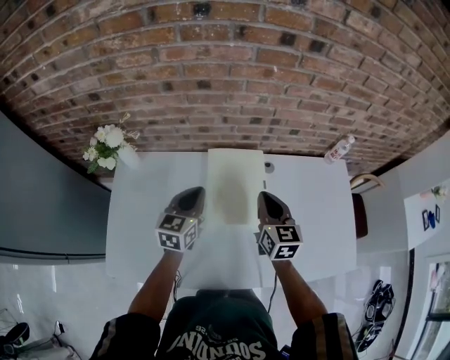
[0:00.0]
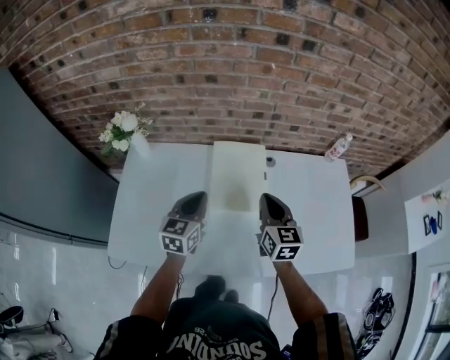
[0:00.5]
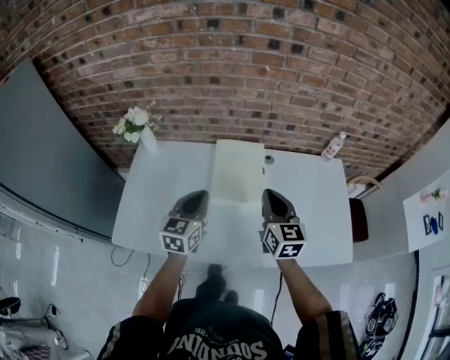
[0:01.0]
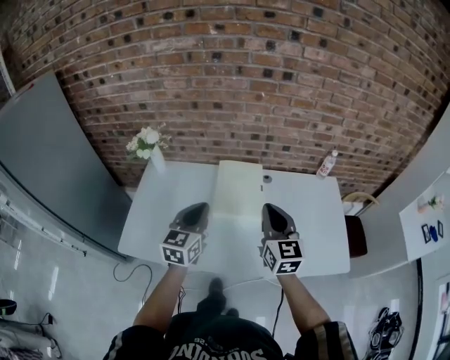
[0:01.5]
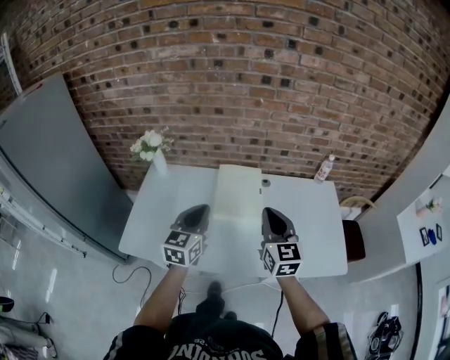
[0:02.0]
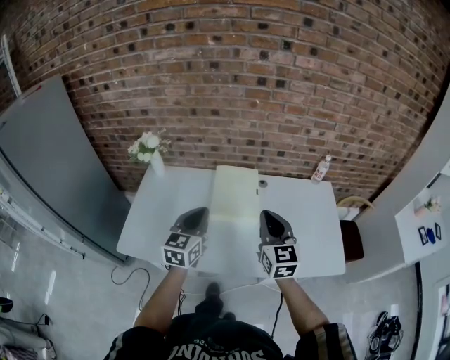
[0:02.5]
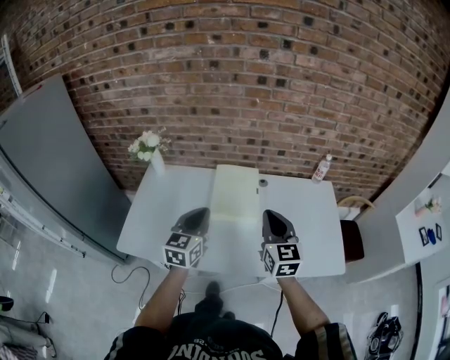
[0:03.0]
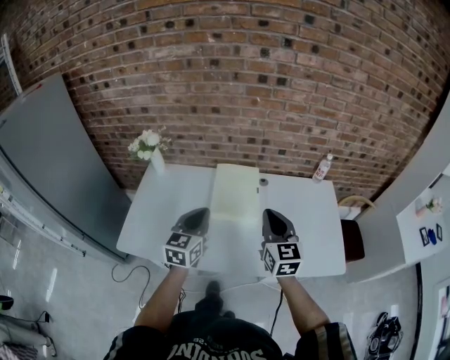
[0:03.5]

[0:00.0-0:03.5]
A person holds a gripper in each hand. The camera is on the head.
0:00.0 to 0:02.0: The two grippers go some 25 cm backward and upward.
0:02.0 to 0:03.5: The grippers make only small movements.

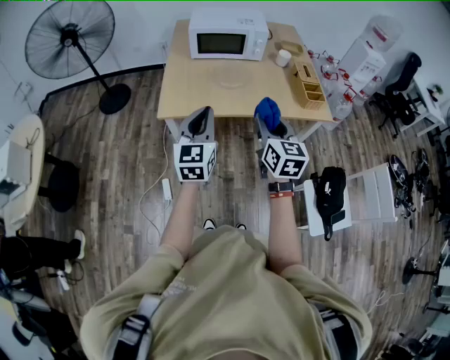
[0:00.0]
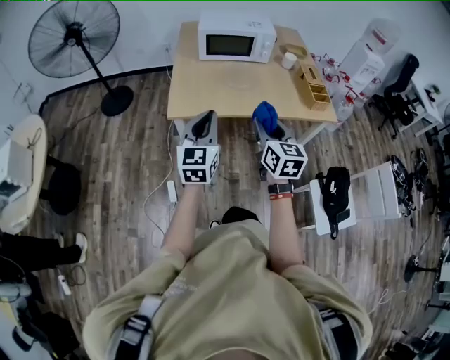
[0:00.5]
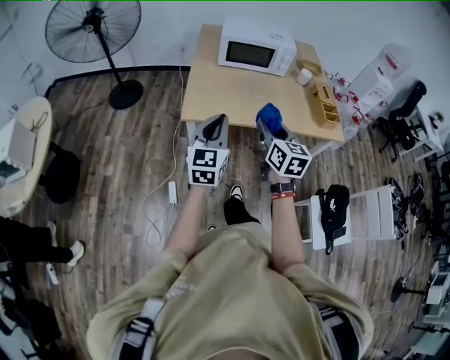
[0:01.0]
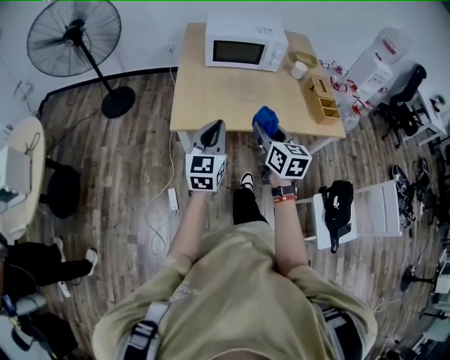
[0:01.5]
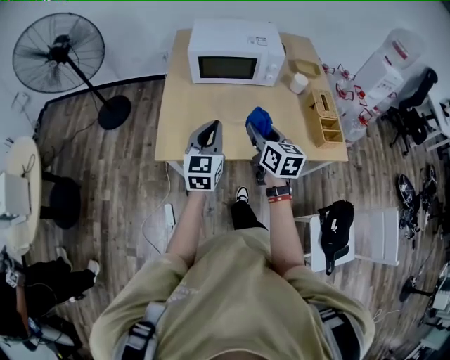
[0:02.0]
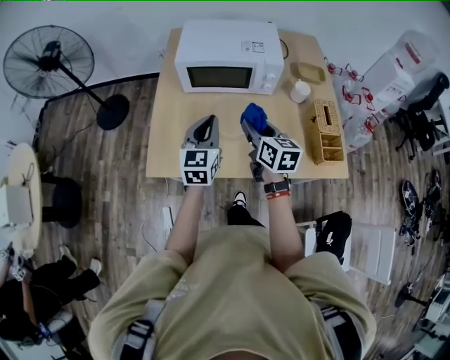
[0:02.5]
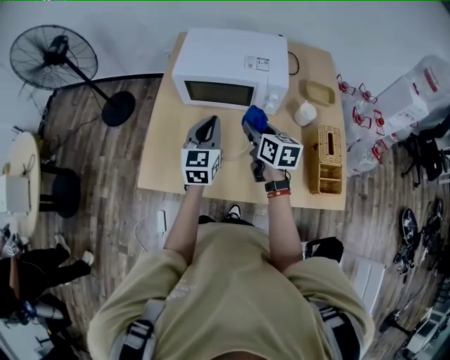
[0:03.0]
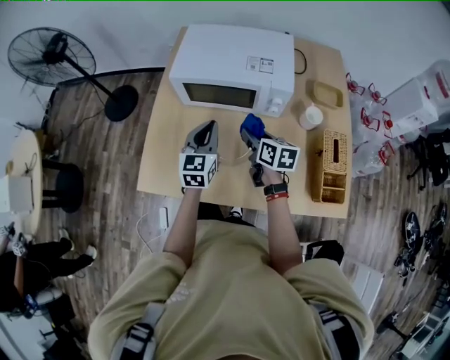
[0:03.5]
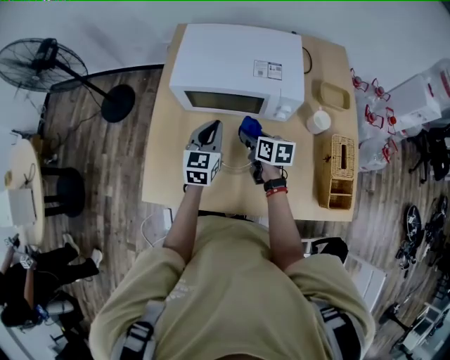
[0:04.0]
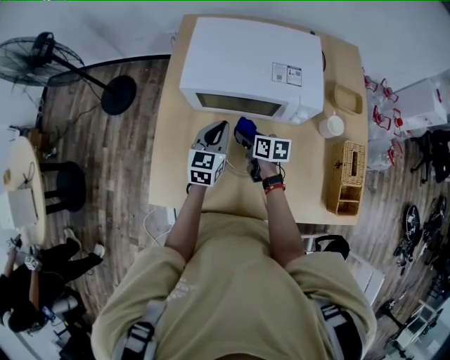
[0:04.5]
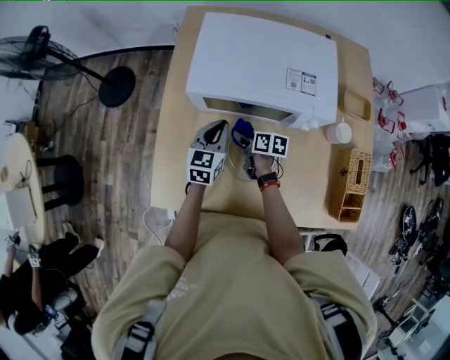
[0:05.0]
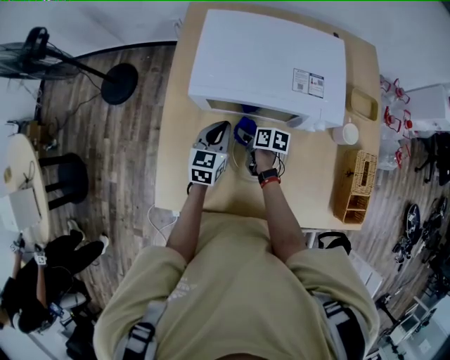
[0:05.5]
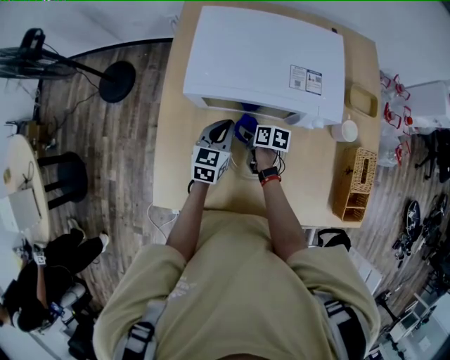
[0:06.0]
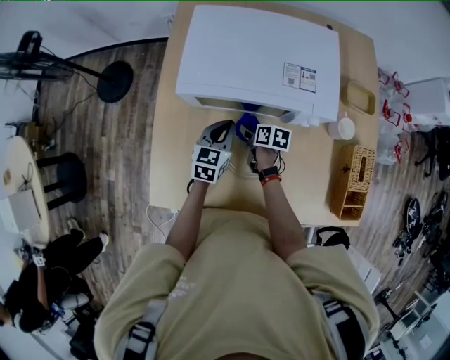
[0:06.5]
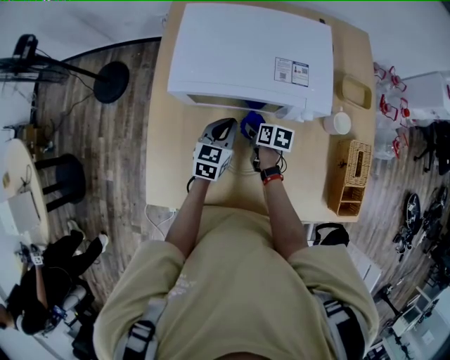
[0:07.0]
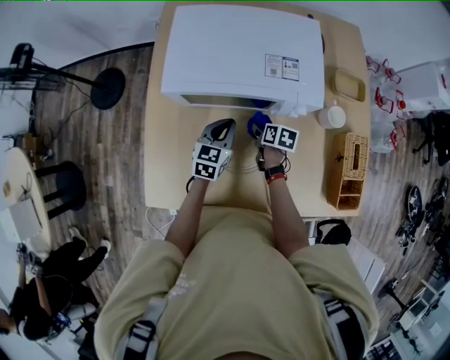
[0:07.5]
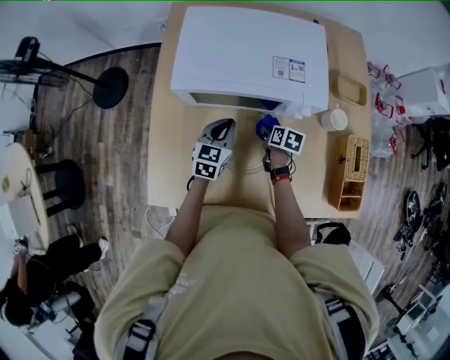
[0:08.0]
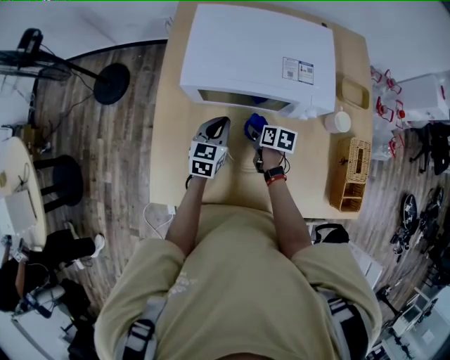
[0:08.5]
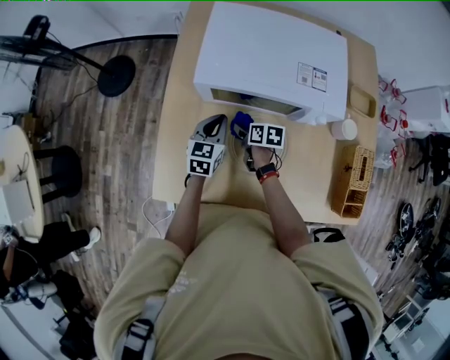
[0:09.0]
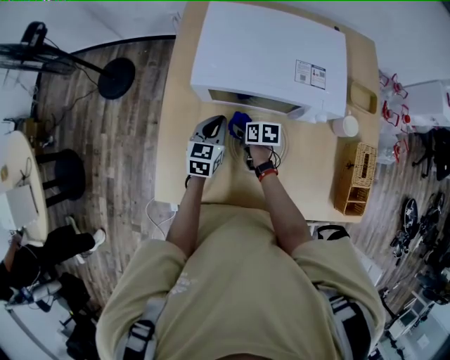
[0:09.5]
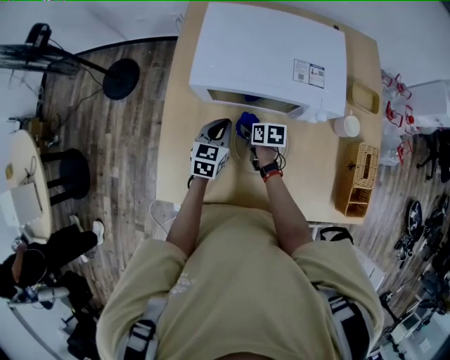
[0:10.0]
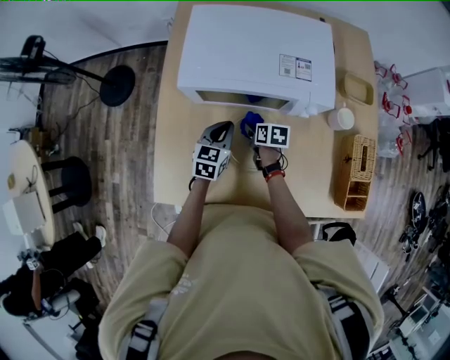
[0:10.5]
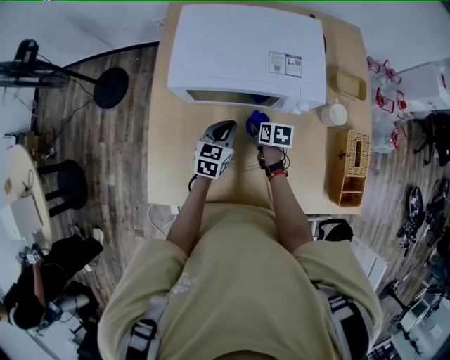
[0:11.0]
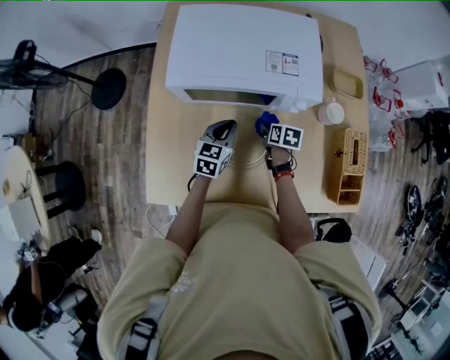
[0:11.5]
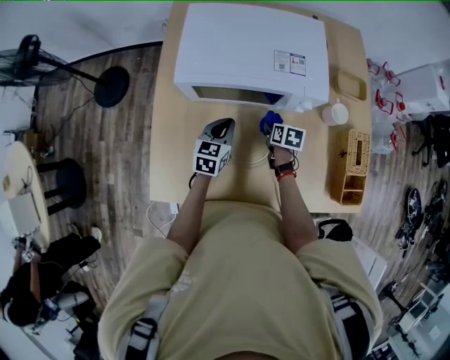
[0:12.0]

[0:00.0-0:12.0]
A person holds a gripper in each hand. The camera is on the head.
0:00.0 to 0:02.0: Both grippers move forward, approximately 25 cm.
0:02.0 to 0:04.0: The right gripper travels forward and downward by roughly 35 cm, and turns by about 30 degrees. Meanwhile the left gripper moves forward, approximately 30 cm.
0:04.0 to 0:06.0: The left gripper is displaced downward and forward by about 10 cm, while the right gripper is displaced downward, forward and to the left by about 20 cm, and turns by some 20 degrees.
0:06.0 to 0:08.0: The right gripper is displaced to the right by about 15 cm.
0:08.0 to 0:10.0: The left gripper travels to the left by roughly 5 cm, while the right gripper moves to the left, approximately 15 cm.
0:10.0 to 0:12.0: The right gripper goes roughly 15 cm to the right. Meanwhile the left gripper shifts about 5 cm to the right.

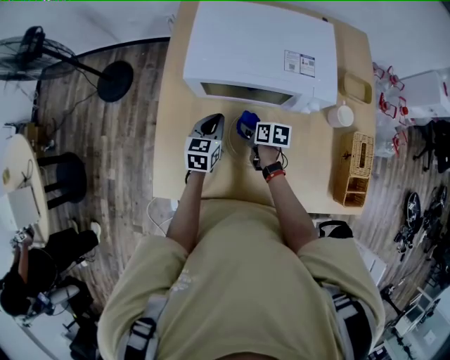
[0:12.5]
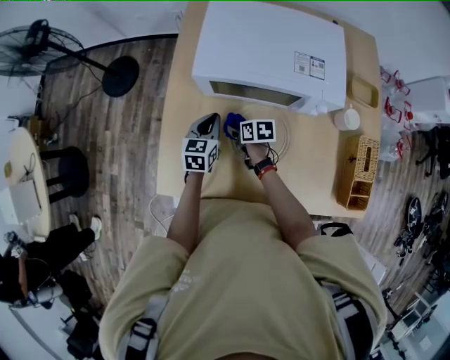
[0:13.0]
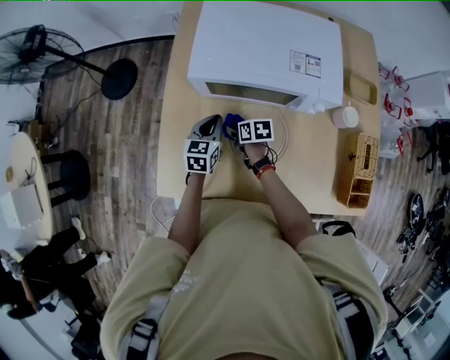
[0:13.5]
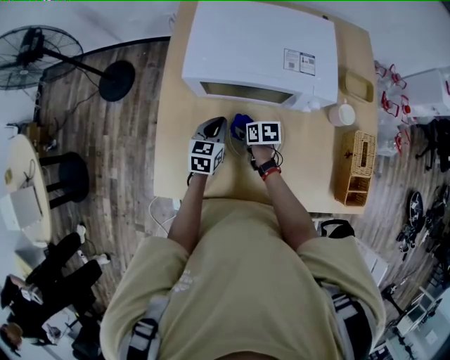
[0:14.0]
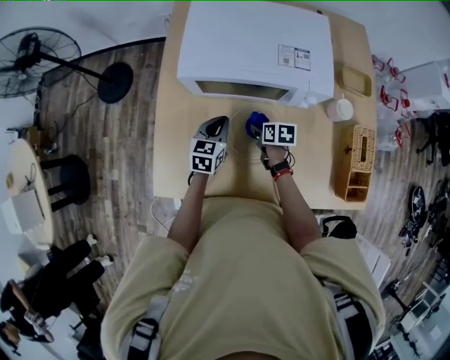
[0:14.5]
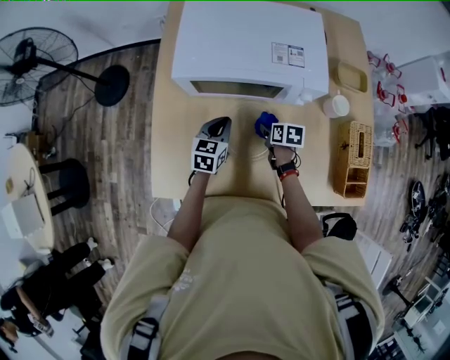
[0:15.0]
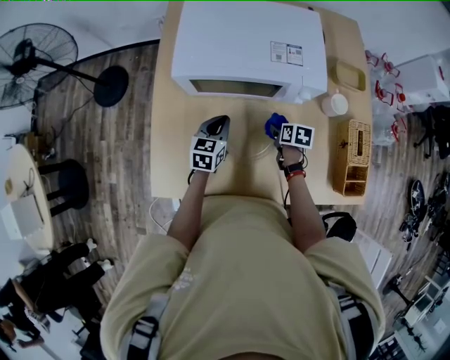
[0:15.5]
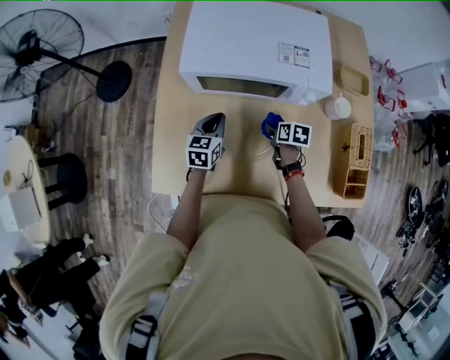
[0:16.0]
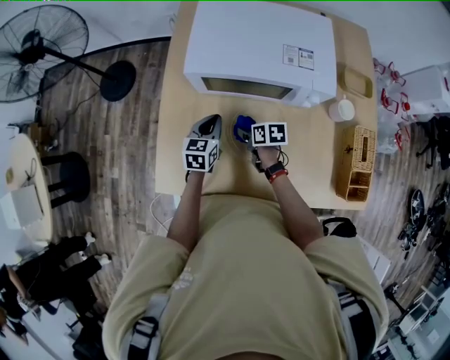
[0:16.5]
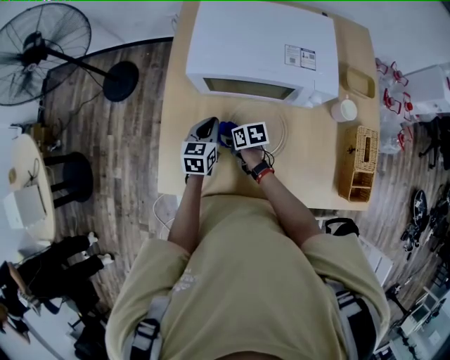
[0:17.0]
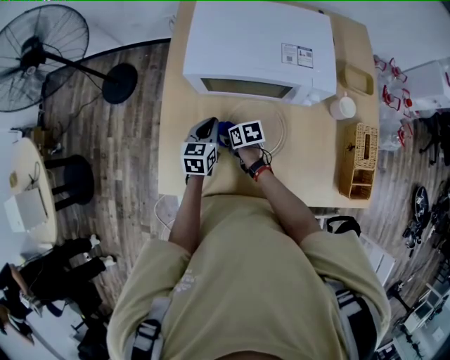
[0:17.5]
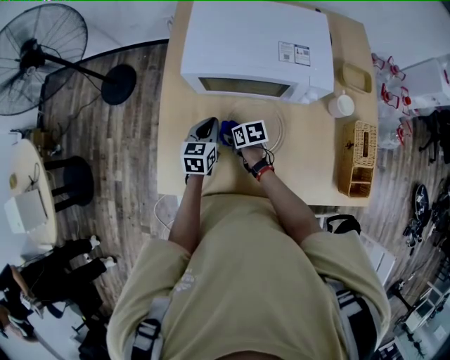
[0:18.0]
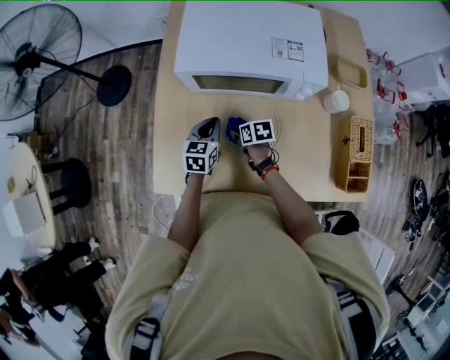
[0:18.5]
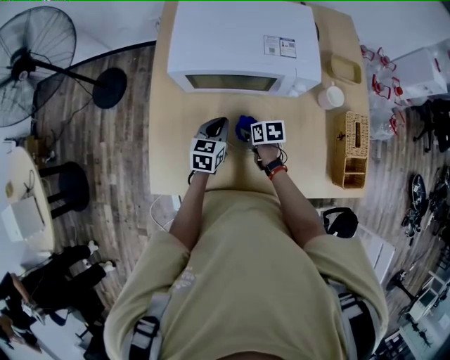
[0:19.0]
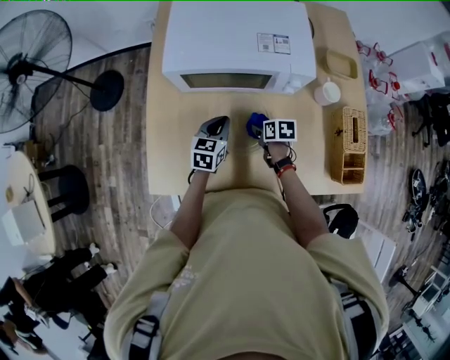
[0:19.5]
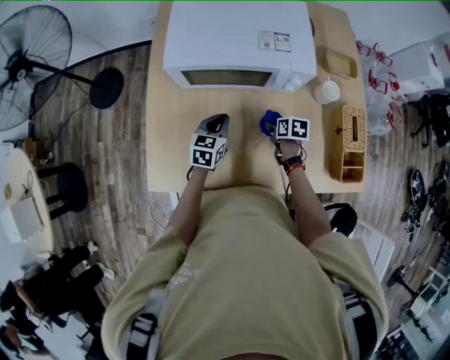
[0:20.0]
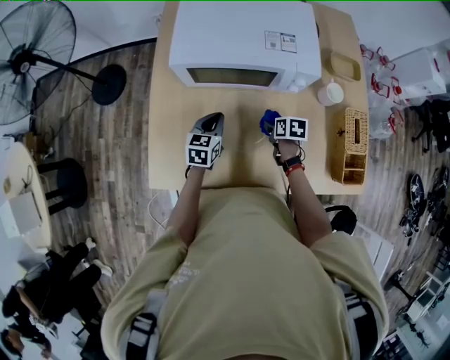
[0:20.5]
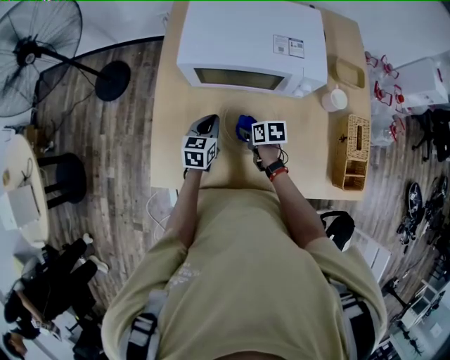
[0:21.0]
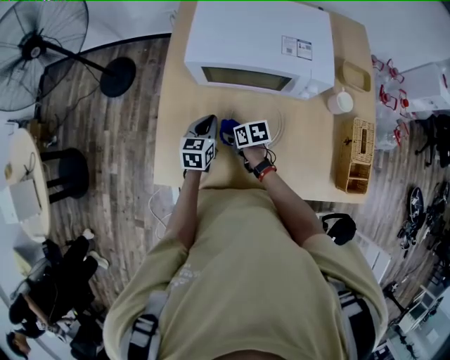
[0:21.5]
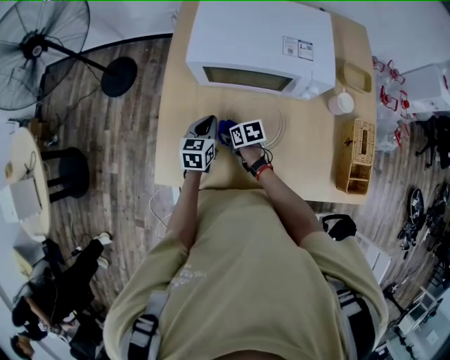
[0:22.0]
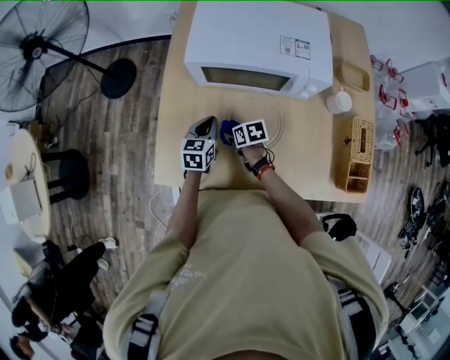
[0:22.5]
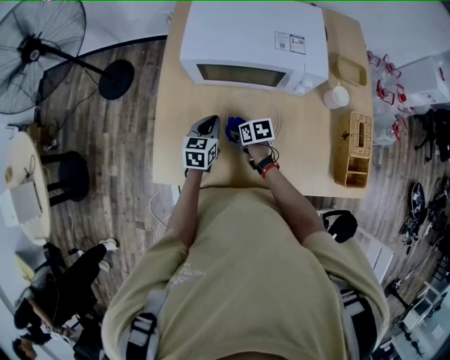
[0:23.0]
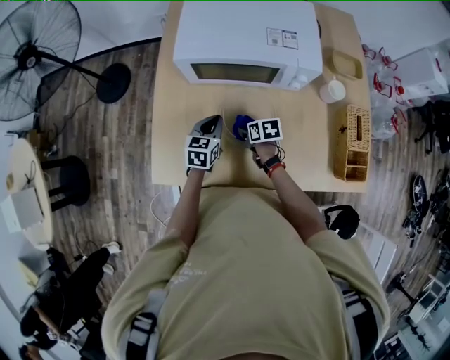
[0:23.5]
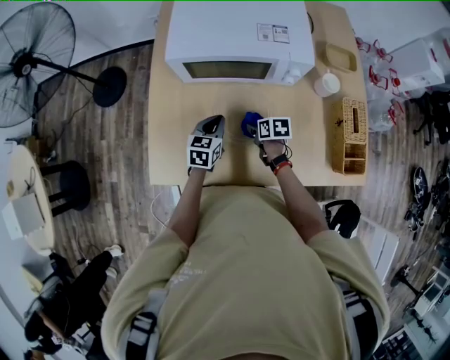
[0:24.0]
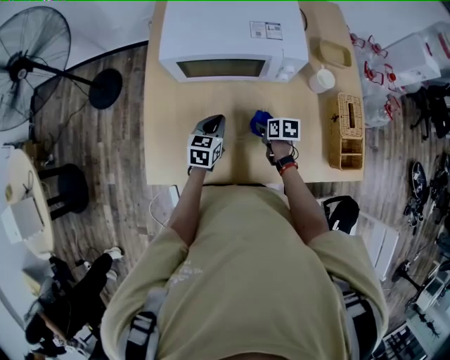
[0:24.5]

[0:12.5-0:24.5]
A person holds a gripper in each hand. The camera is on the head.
0:12.5 to 0:14.5: The right gripper travels to the left and back again, roughly 10 cm each way.
0:14.5 to 0:16.5: The right gripper moves to the left, some 5 cm.
0:16.5 to 0:18.5: The right gripper travels to the left and back again, about 10 cm each way.
0:18.5 to 0:20.5: The right gripper shifts some 15 cm to the right.
0:20.5 to 0:22.5: The right gripper is displaced to the left by about 20 cm, and rotates approximately 20 degrees; the left gripper moves to the left, about 5 cm.
0:22.5 to 0:24.5: The left gripper heads to the right and backward, covering some 10 cm, while the right gripper shifts approximately 20 cm to the right, and changes its angle by some 20 degrees.
